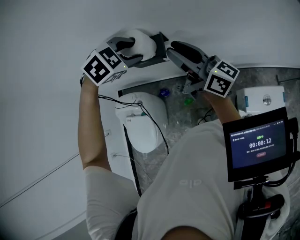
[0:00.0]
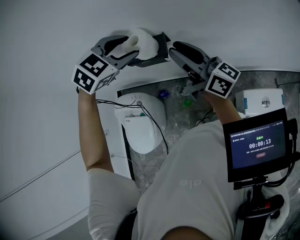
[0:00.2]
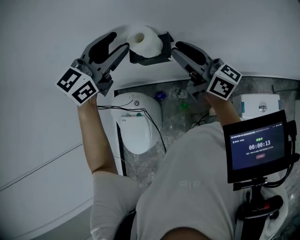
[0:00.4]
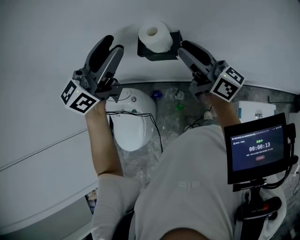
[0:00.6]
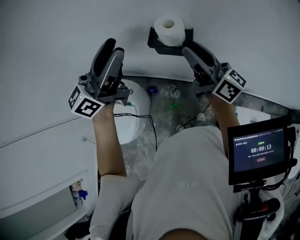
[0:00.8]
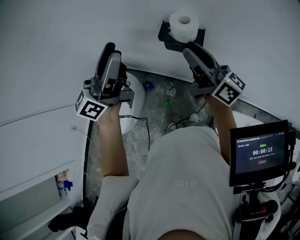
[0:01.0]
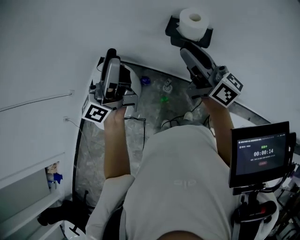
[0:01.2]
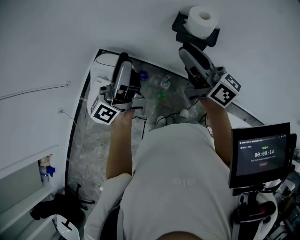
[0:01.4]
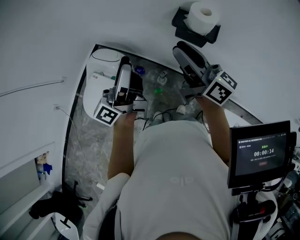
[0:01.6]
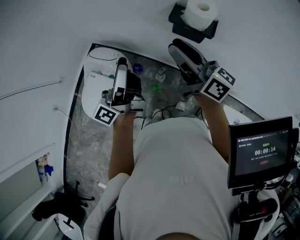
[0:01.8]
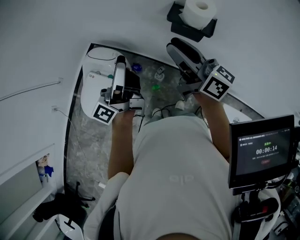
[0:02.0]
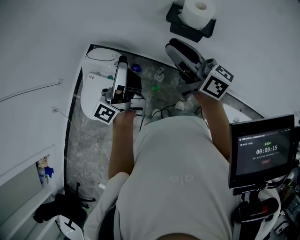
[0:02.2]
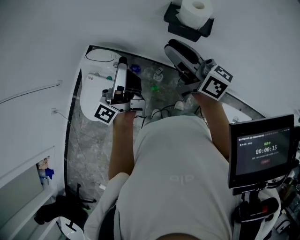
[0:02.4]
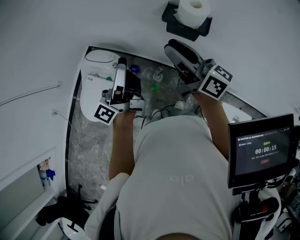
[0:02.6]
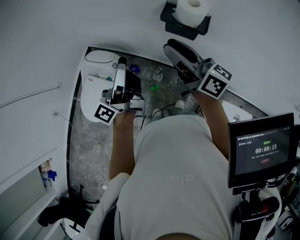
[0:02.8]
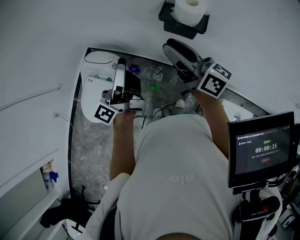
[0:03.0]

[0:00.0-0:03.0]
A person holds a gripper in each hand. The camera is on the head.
0:00.0 to 0:01.6: The right gripper ends up roughly 5 cm from where it was. Meanwhile the left gripper goes some 10 cm backward, reaches approximately 15 cm upward, then returns, and tilts its fingers about 80 degrees upward.
0:01.6 to 0:03.0: The grippers move only a little.

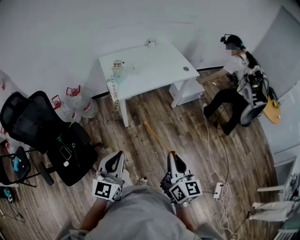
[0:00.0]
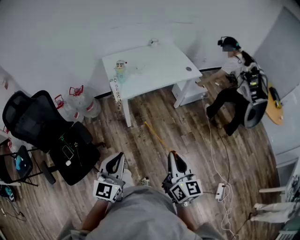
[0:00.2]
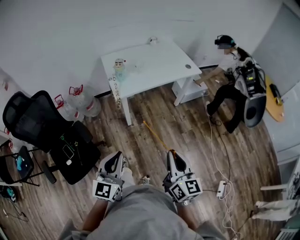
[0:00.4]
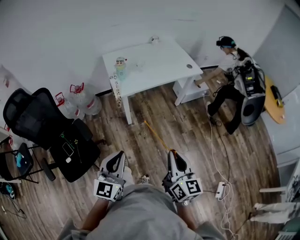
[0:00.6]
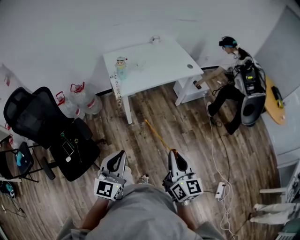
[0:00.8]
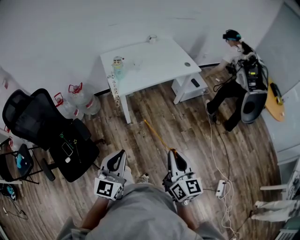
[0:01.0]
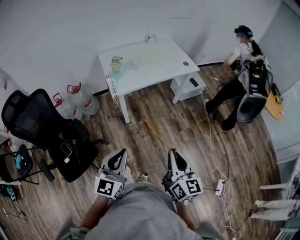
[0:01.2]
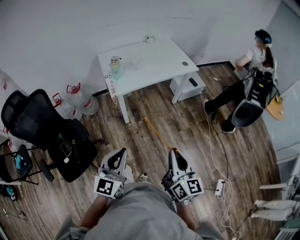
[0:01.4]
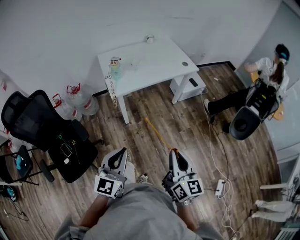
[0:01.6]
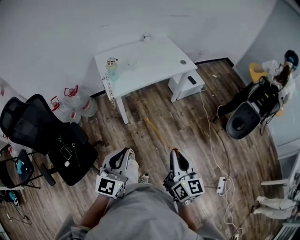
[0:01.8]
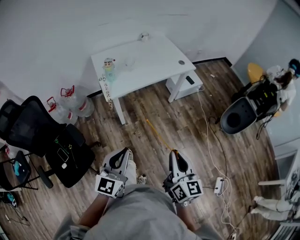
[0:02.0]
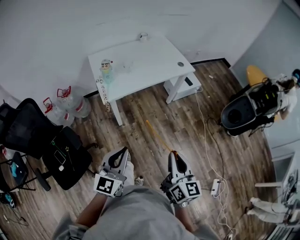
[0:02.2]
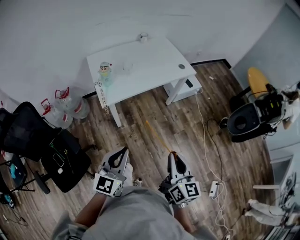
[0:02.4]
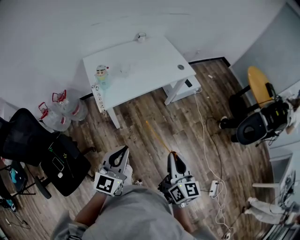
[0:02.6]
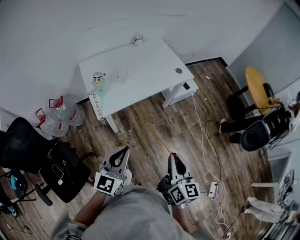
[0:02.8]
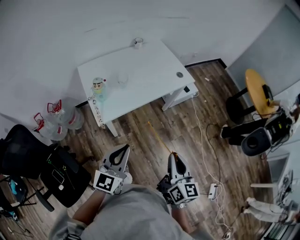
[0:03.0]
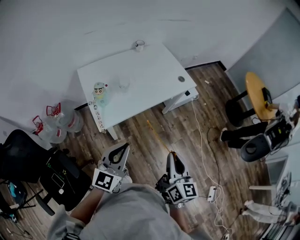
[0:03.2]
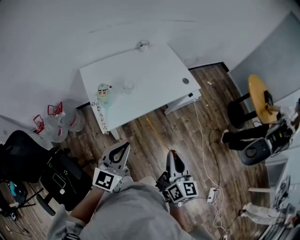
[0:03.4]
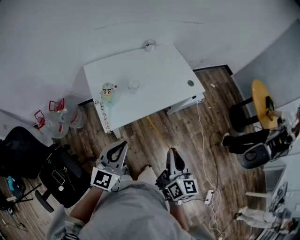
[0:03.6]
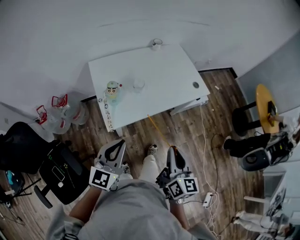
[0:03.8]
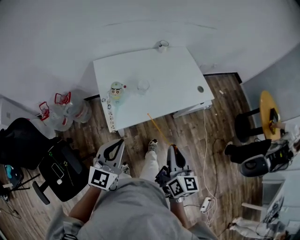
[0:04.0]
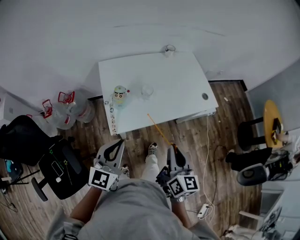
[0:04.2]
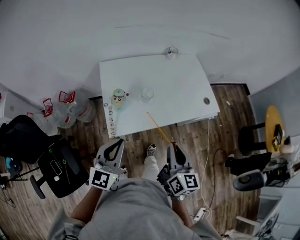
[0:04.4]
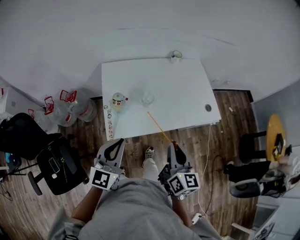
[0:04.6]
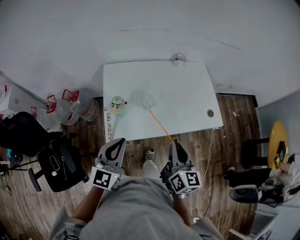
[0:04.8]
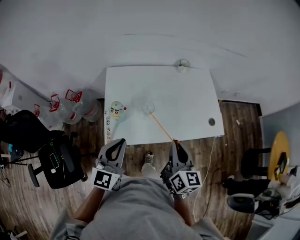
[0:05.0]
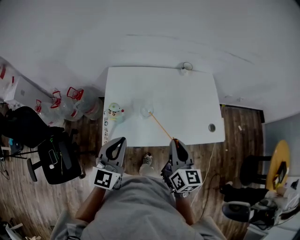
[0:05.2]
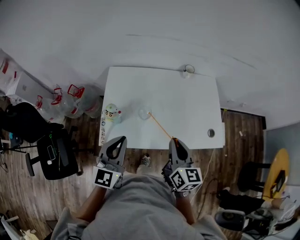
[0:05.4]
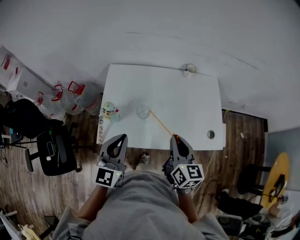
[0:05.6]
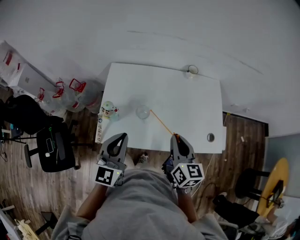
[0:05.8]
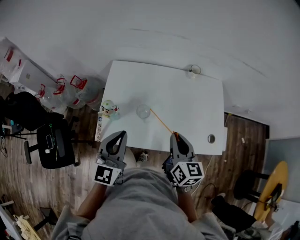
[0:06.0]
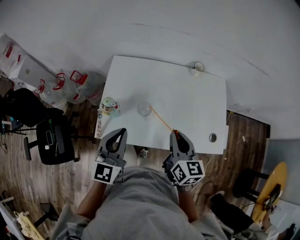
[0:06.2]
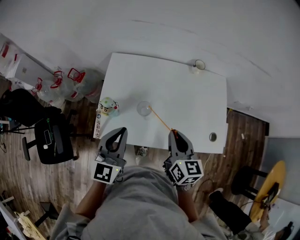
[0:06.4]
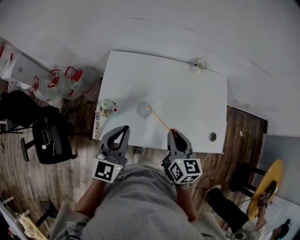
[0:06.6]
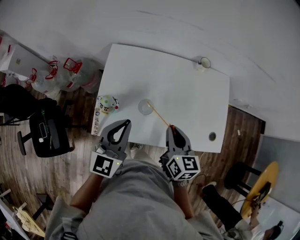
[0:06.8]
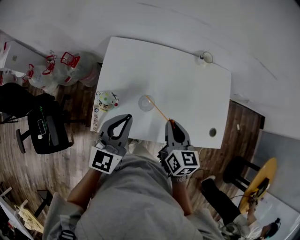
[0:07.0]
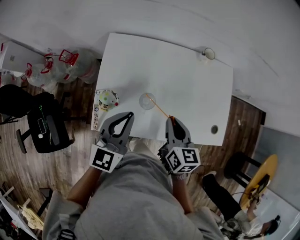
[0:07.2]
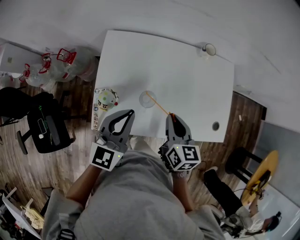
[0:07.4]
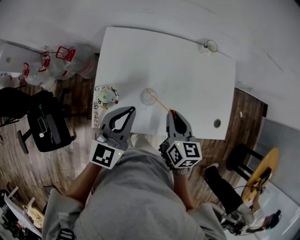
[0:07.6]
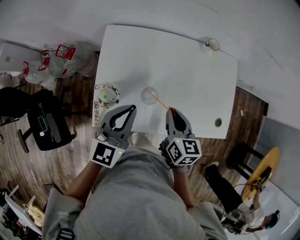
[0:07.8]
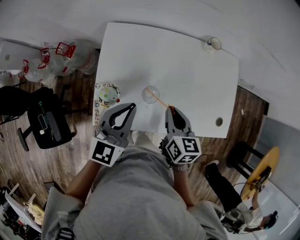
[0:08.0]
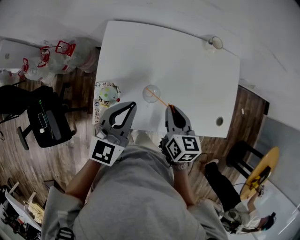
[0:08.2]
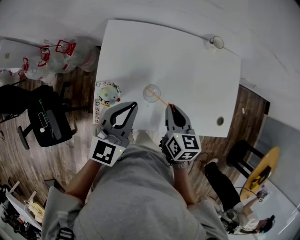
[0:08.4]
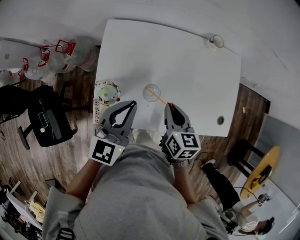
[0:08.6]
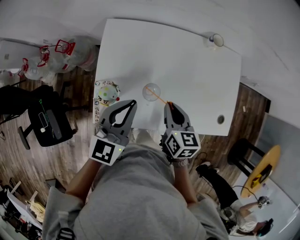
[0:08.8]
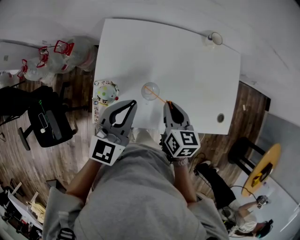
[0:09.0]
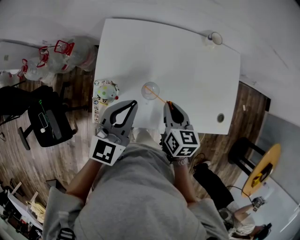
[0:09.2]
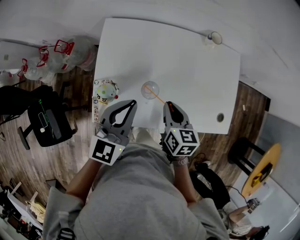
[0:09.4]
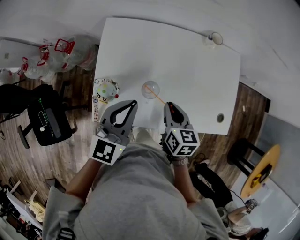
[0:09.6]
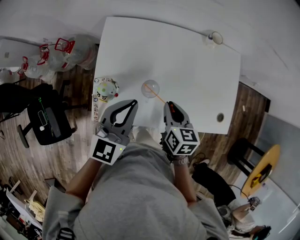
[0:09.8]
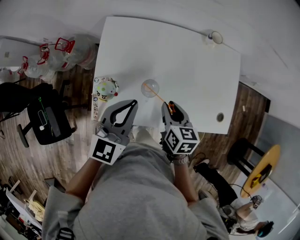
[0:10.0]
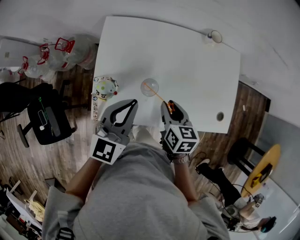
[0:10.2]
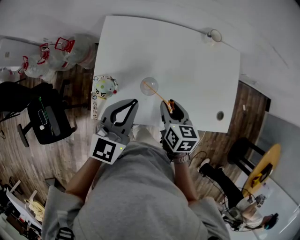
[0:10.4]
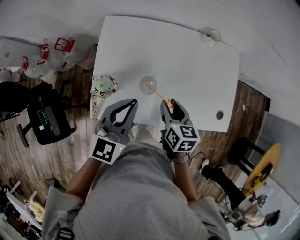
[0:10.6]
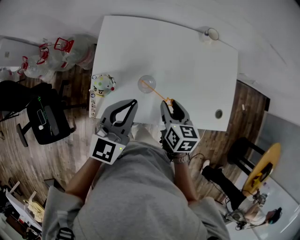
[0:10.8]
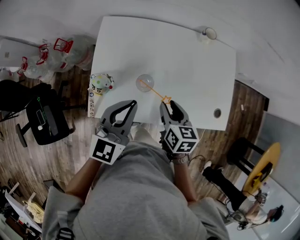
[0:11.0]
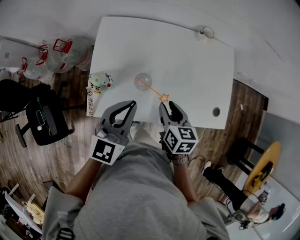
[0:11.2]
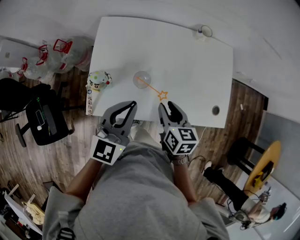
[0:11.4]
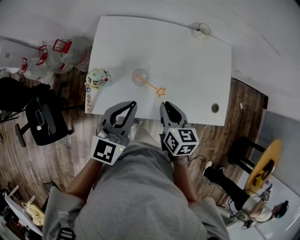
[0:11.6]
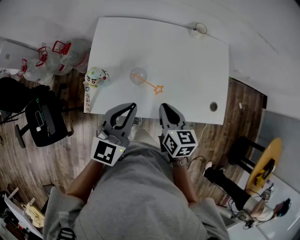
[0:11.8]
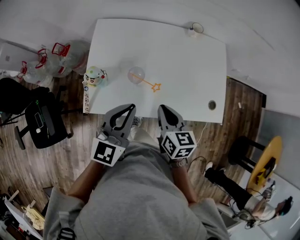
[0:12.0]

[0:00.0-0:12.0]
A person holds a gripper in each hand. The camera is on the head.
0:00.0 to 0:01.6: The grippers move only a little.
0:01.6 to 0:03.0: Both grippers travel together forward, roughly 25 cm.
0:03.0 to 0:04.4: Both grippers move forward and to the left, about 20 cm.
0:04.4 to 0:06.0: The grippers both shift forward and to the right by roughly 20 cm. The right gripper turns by approximately 30 degrees; the left gripper swivels roughly 20 degrees.
0:06.0 to 0:07.6: The right gripper moves forward, downward and to the left, approximately 15 cm. The left gripper moves forward and downward, some 10 cm.
0:07.6 to 0:09.0: The grippers stay close to where they were, moving slightly.
0:09.0 to 0:10.4: The right gripper opens its fingers.
0:10.4 to 0:12.0: The left gripper shifts about 10 cm backward and to the right. The right gripper moves backward, about 10 cm, and closes its fingers.

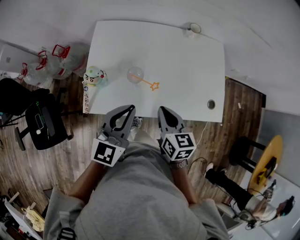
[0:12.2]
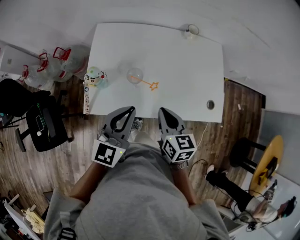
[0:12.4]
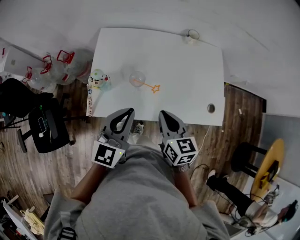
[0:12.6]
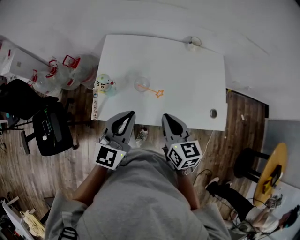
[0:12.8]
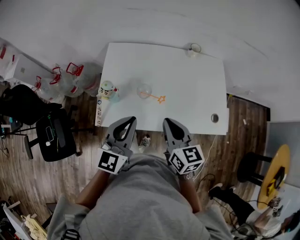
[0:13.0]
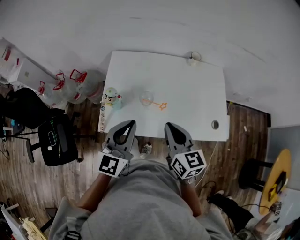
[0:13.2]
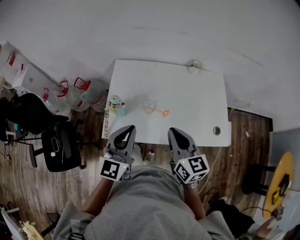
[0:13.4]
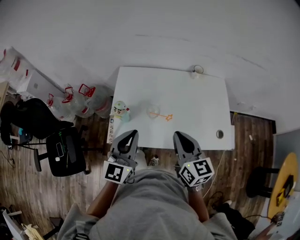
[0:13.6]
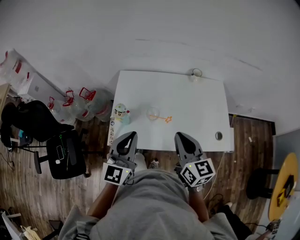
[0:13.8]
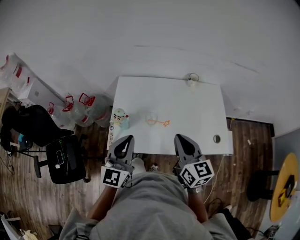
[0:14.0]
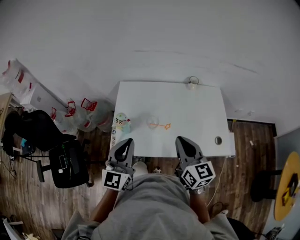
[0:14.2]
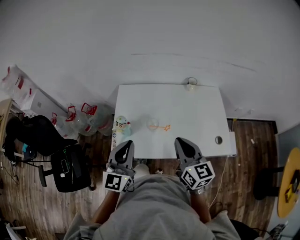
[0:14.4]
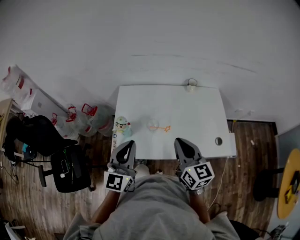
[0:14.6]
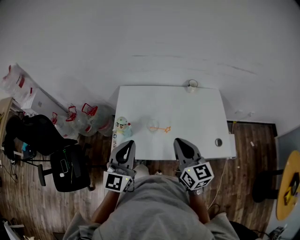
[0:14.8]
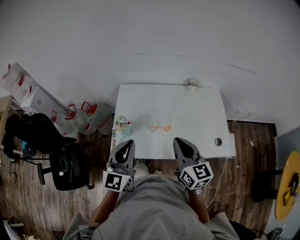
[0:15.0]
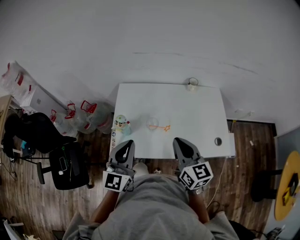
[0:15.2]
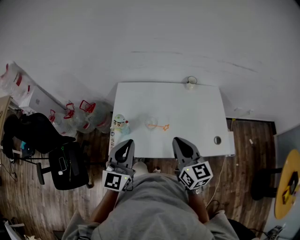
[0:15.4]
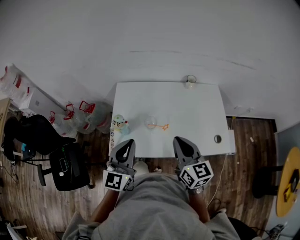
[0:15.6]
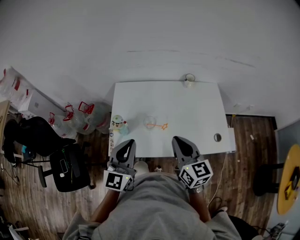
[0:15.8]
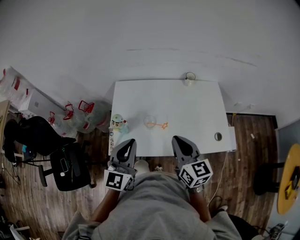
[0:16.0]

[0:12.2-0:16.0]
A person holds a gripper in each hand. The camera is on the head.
0:12.2 to 0:13.4: The right gripper travels upward by about 10 cm. Meanwhile the left gripper moves upward and to the left, roughly 10 cm.
0:13.4 to 0:16.0: The grippers move only a little.

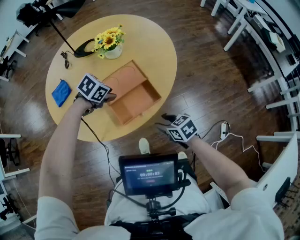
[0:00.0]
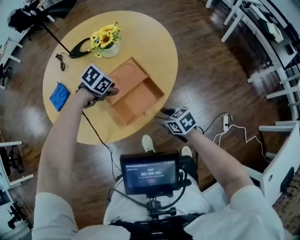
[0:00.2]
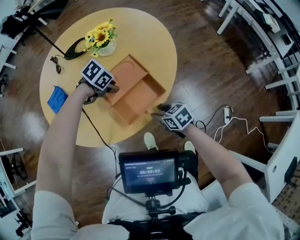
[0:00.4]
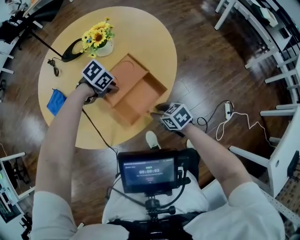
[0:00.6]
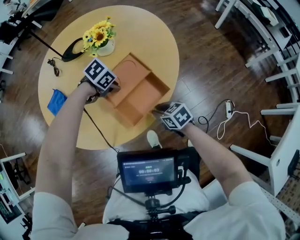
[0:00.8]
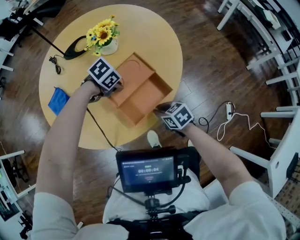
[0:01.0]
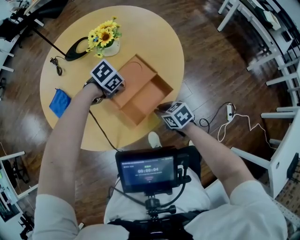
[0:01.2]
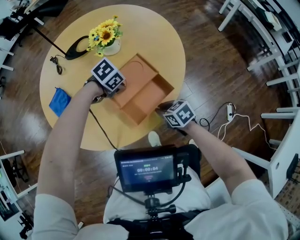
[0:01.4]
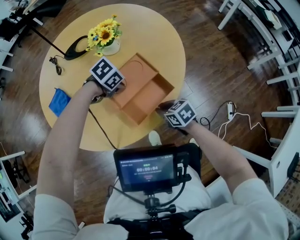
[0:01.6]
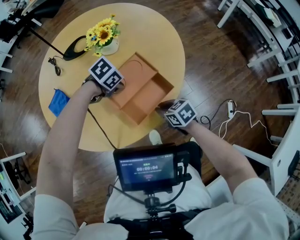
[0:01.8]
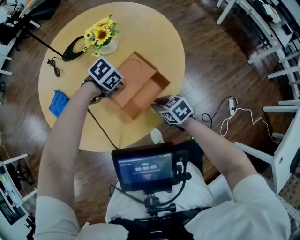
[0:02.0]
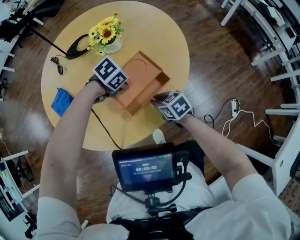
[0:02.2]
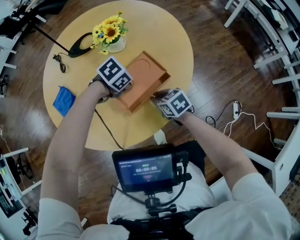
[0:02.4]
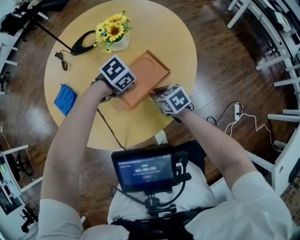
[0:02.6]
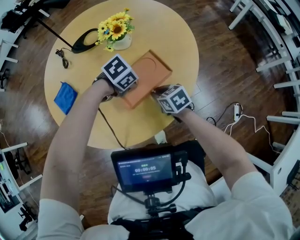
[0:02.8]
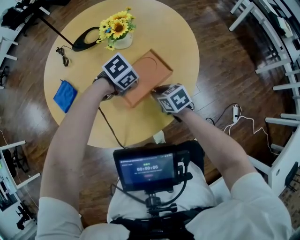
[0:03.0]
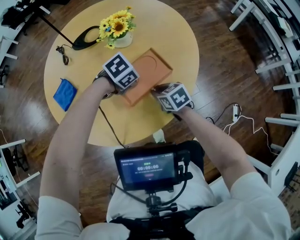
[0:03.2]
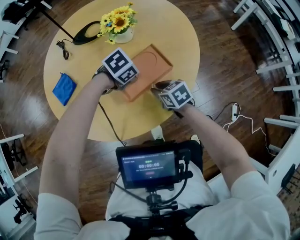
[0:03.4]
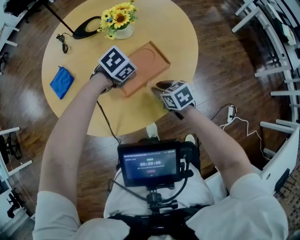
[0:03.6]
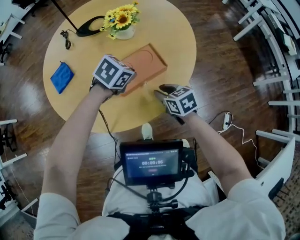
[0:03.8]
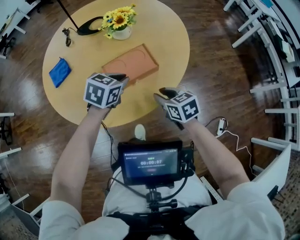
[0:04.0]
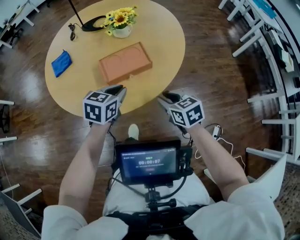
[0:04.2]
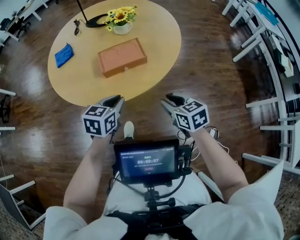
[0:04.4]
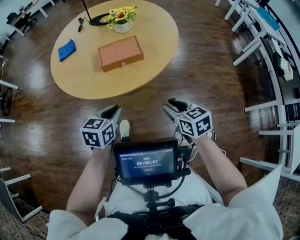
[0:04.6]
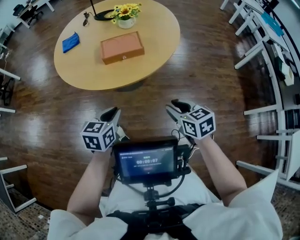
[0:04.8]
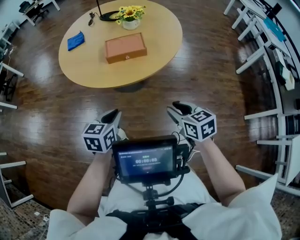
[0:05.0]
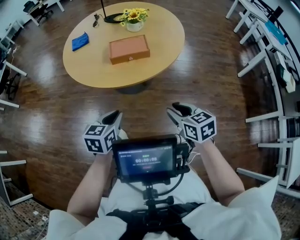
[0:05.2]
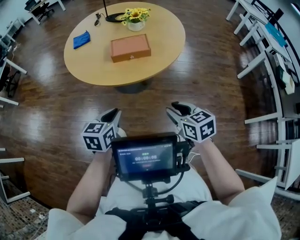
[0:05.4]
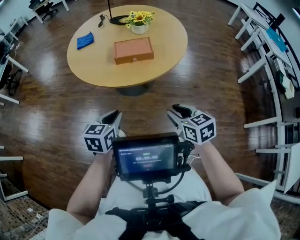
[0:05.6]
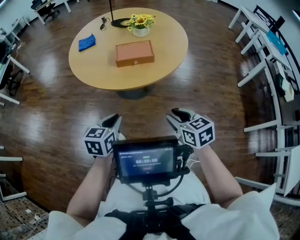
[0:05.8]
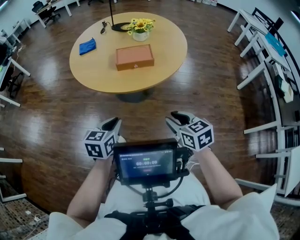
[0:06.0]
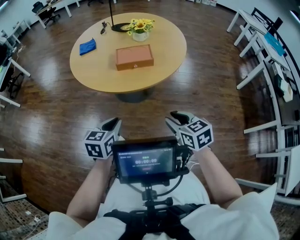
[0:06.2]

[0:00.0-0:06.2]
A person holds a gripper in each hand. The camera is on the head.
0:00.0 to 0:01.6: The left gripper travels downward by roughly 5 cm, and closes. Meanwhile the right gripper shifts by roughly 10 cm, and closes its fingers.
0:01.6 to 0:03.2: The right gripper changes place by some 10 cm.
0:03.2 to 0:04.6: The left gripper shifts by roughly 30 cm, and points its fingers approximately 30 degrees further upward; the right gripper changes place by roughly 35 cm.
0:04.6 to 0:06.2: The grippers both shift backward by approximately 10 cm.
